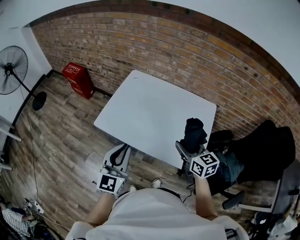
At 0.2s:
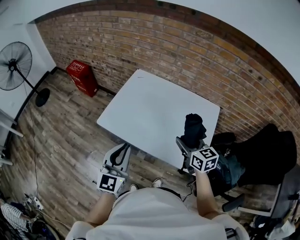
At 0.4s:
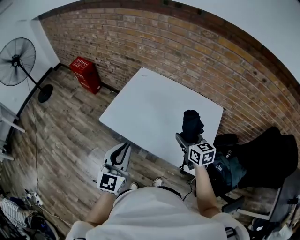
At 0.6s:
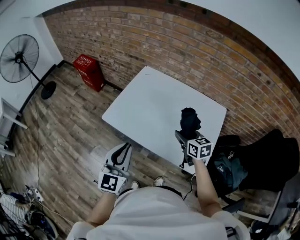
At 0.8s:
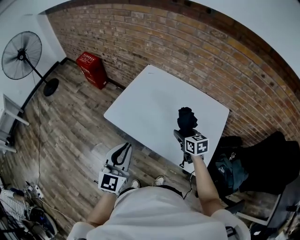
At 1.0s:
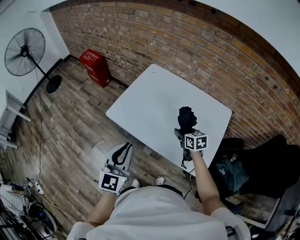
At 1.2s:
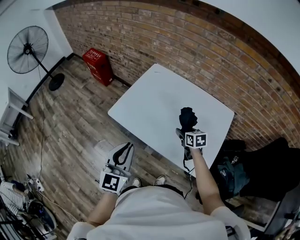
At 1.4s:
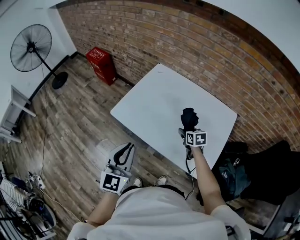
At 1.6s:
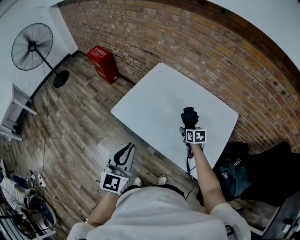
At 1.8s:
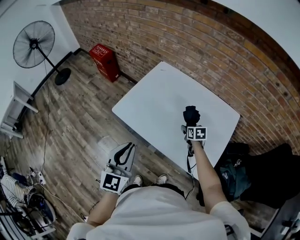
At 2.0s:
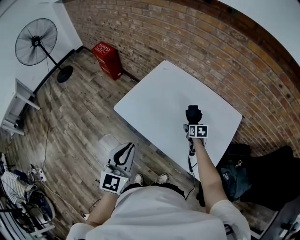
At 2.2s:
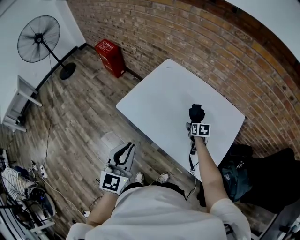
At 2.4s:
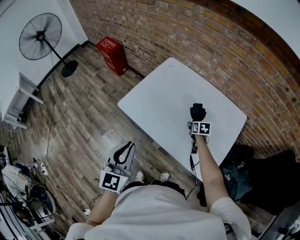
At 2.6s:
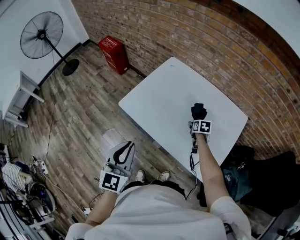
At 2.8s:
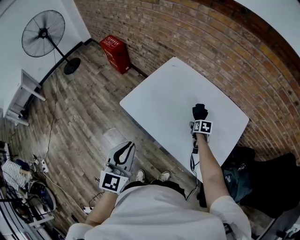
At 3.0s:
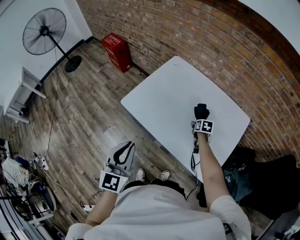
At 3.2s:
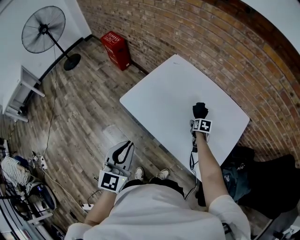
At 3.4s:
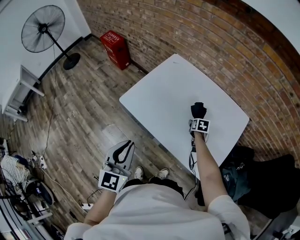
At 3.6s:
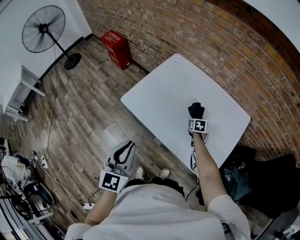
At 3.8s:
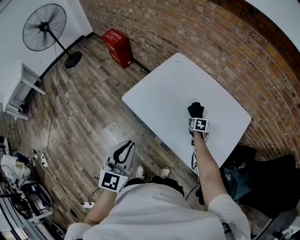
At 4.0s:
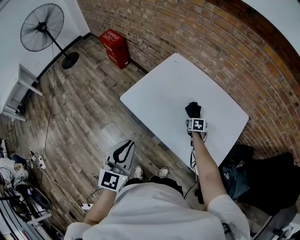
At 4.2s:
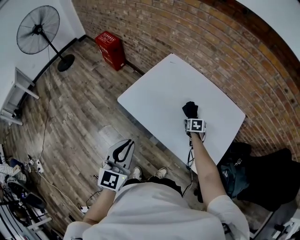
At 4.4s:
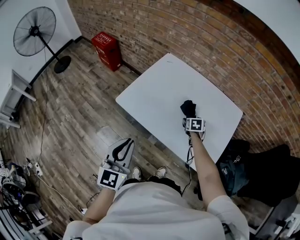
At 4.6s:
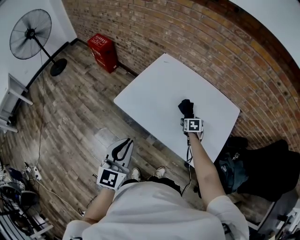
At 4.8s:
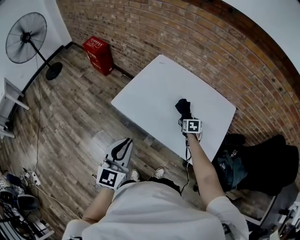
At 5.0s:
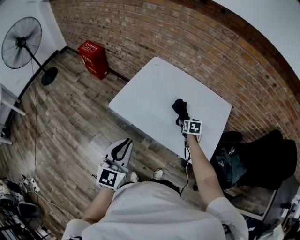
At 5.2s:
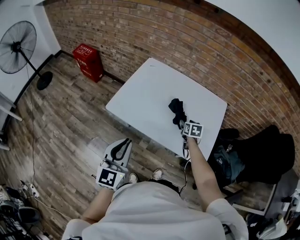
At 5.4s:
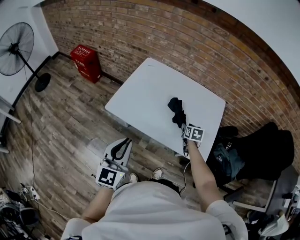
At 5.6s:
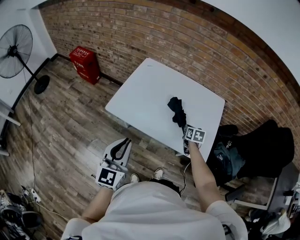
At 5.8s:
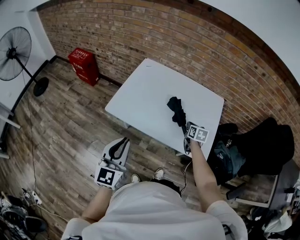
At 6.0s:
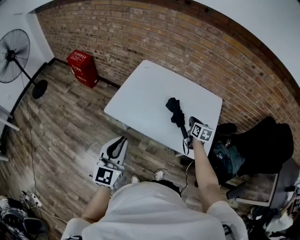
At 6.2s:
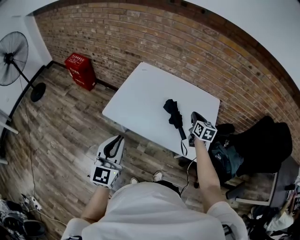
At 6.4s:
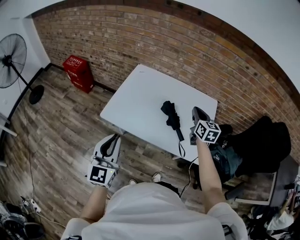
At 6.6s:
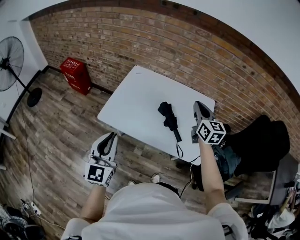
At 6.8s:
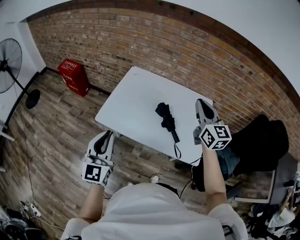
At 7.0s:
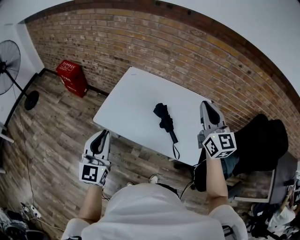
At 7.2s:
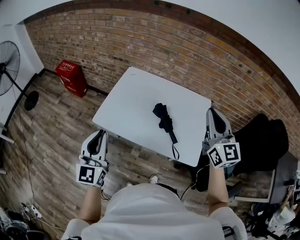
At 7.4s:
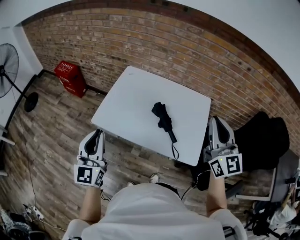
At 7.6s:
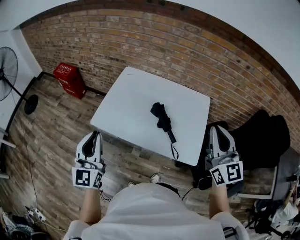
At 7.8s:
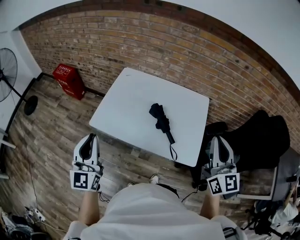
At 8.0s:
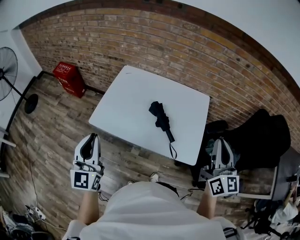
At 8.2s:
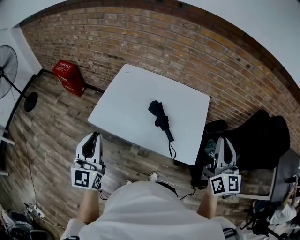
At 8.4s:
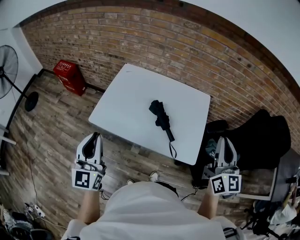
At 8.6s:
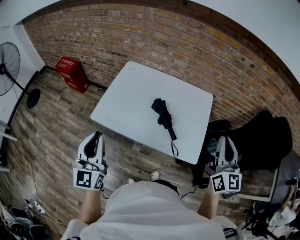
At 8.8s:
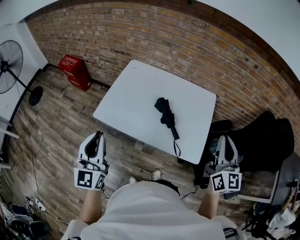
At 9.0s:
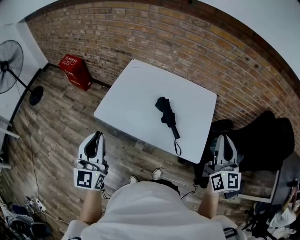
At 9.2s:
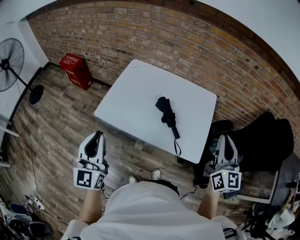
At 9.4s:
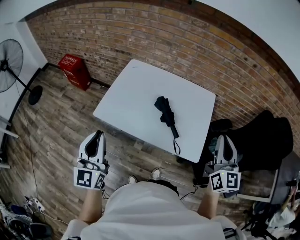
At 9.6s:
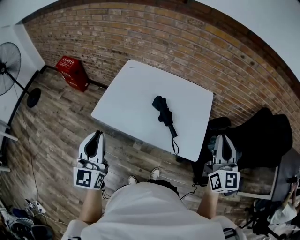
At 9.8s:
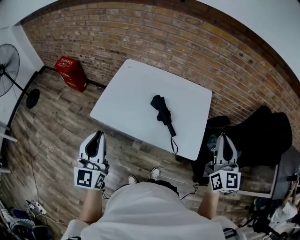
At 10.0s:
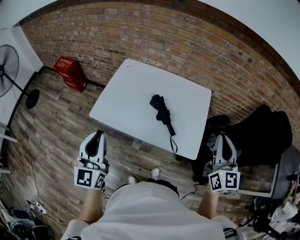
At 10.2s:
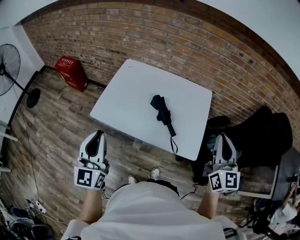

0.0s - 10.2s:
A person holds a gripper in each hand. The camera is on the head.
0.0s - 1.4s: The right gripper is displaced downward and forward by approximately 25 cm, and rotates roughly 20 degrees.
1.4s - 3.0s: The right gripper travels downward and forward by roughly 10 cm.
3.0s - 4.4s: The right gripper opens up.
4.4s - 5.8s: The right gripper goes about 15 cm backward, upward and to the right, rotates approximately 30 degrees, and closes up.
5.8s - 7.2s: The left gripper is displaced upward and forward by approximately 10 cm, while the right gripper is displaced upward by roughly 35 cm, and tips its fingers upward by about 50 degrees.
7.2s - 8.8s: The right gripper shifts about 10 cm to the right and backward.
8.8s - 10.2s: The grippers move only a little.

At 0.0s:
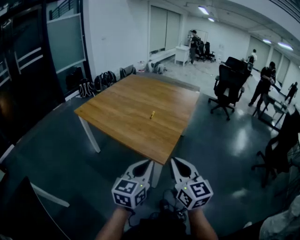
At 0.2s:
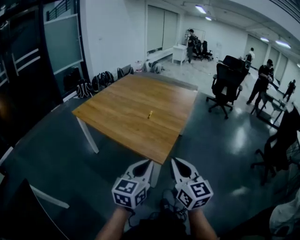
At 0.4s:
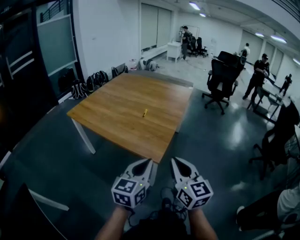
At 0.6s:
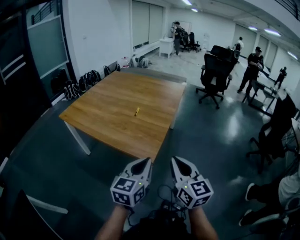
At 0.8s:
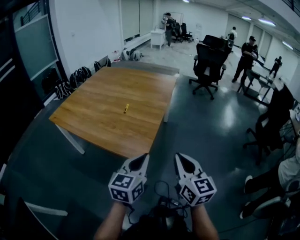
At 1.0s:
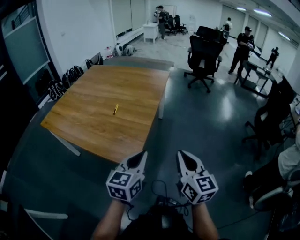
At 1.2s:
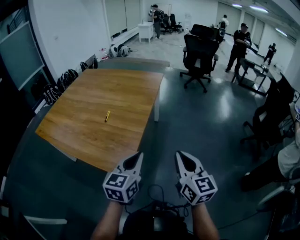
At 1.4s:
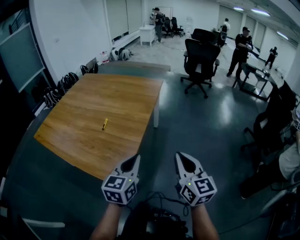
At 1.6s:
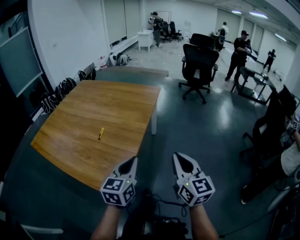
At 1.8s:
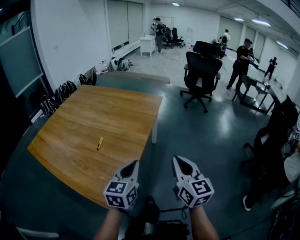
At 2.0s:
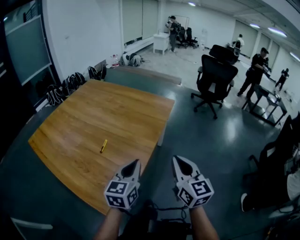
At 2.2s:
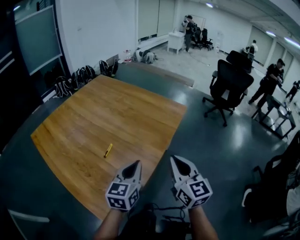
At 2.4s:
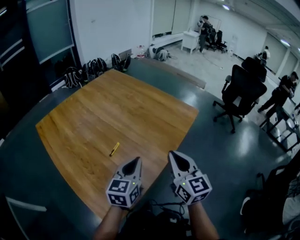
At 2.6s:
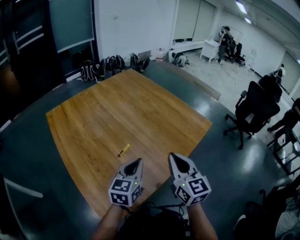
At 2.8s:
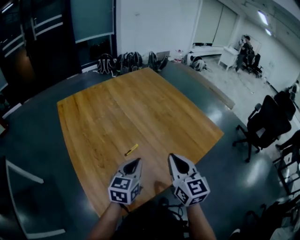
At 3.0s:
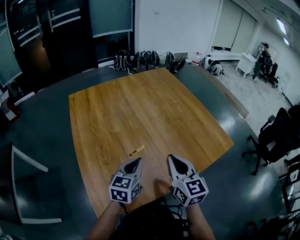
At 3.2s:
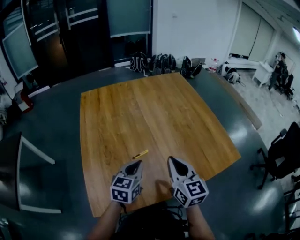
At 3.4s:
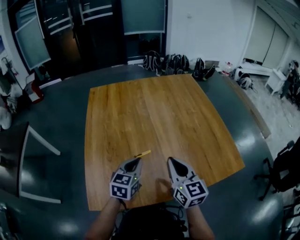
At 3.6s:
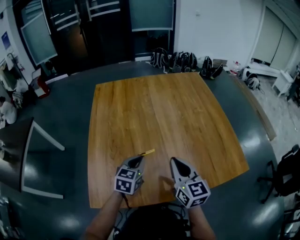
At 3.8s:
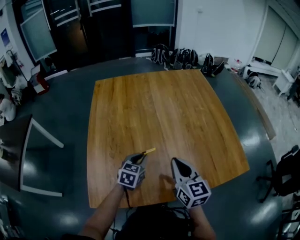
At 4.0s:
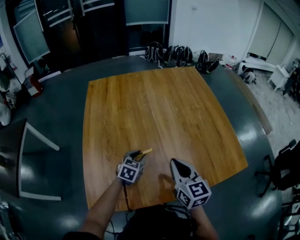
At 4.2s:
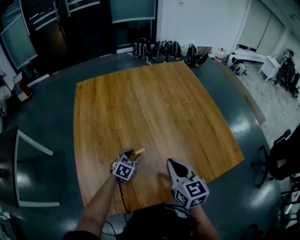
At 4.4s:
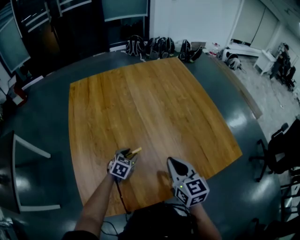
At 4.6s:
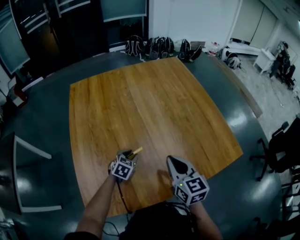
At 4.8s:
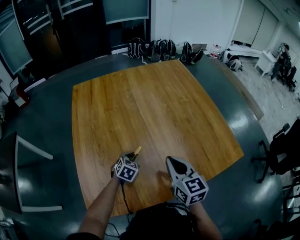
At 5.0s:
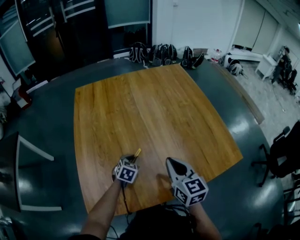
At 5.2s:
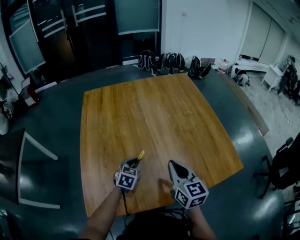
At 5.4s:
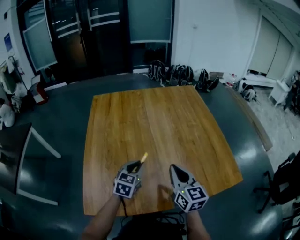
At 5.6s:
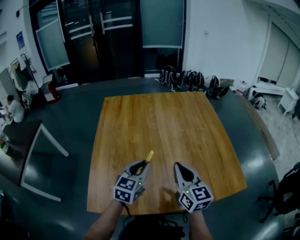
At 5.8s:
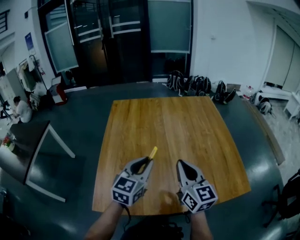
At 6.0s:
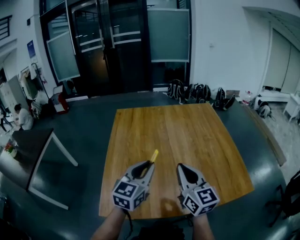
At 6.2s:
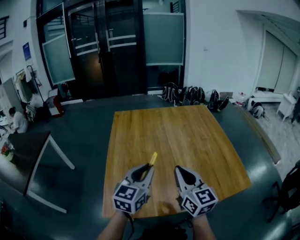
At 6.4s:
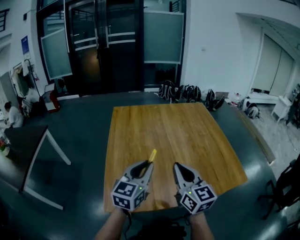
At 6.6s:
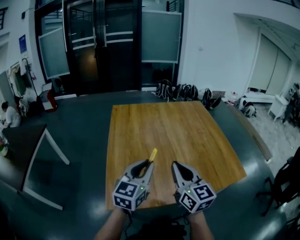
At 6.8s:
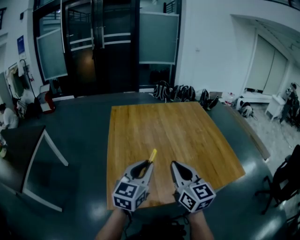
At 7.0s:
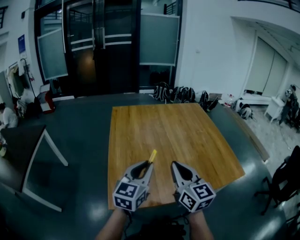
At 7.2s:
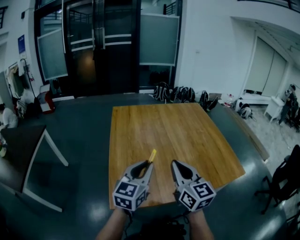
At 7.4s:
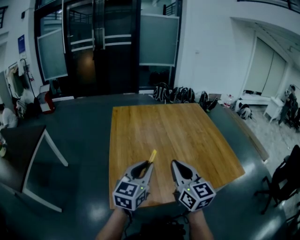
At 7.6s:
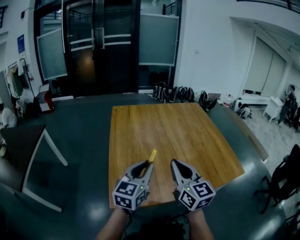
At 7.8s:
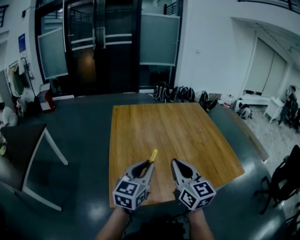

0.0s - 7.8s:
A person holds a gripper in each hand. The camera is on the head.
0.0s - 1.6s: The two grippers go approximately 35 cm forward and to the right.
1.6s - 3.2s: The left gripper shifts by approximately 30 cm, and swivels about 50 degrees, while the right gripper shifts by some 40 cm, and turns by some 60 degrees.
3.2s - 4.6s: The right gripper goes some 5 cm downward. Meanwhile the left gripper travels downward and forward by about 20 cm, changes its angle by about 30 degrees, and opens its fingers.
4.6s - 6.2s: The right gripper shifts about 15 cm upward, to the left and backward, and rotates about 20 degrees, while the left gripper heads upward and backward, covering approximately 35 cm, and points its fingers roughly 40 degrees further upward.
6.2s - 7.8s: The right gripper heads to the left and backward, covering about 10 cm. The left gripper goes some 10 cm backward and to the left.

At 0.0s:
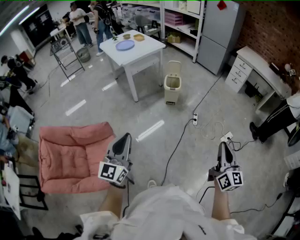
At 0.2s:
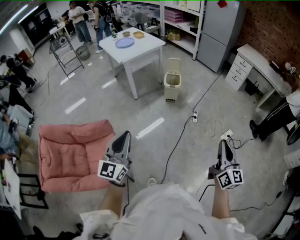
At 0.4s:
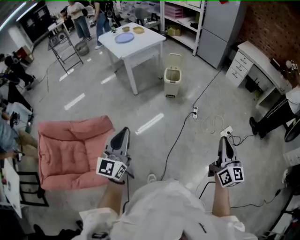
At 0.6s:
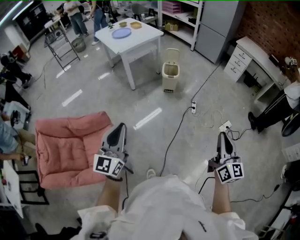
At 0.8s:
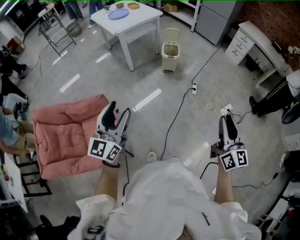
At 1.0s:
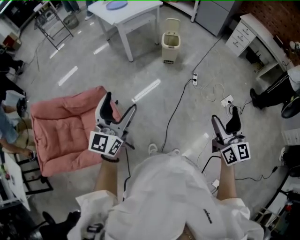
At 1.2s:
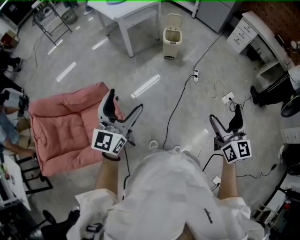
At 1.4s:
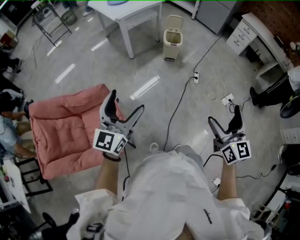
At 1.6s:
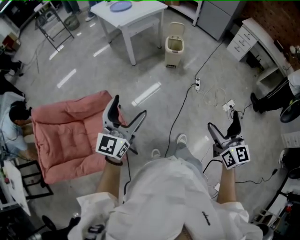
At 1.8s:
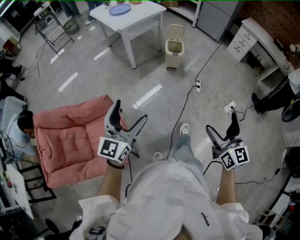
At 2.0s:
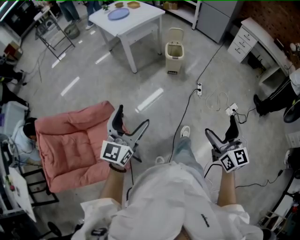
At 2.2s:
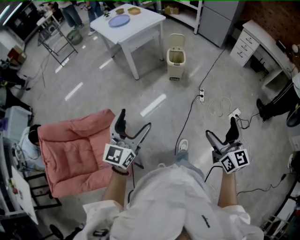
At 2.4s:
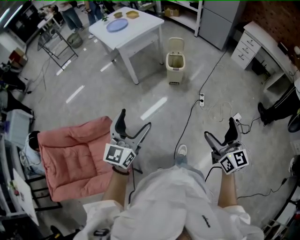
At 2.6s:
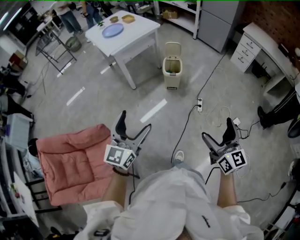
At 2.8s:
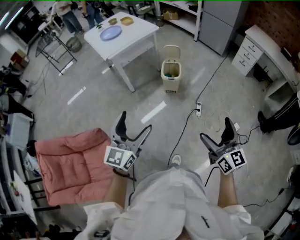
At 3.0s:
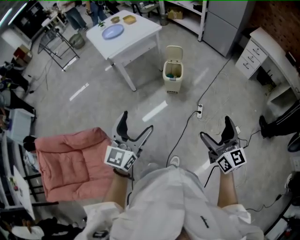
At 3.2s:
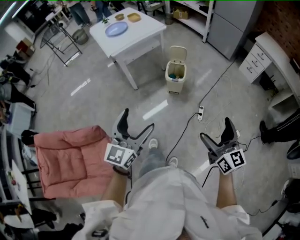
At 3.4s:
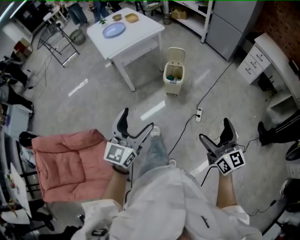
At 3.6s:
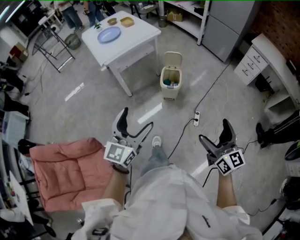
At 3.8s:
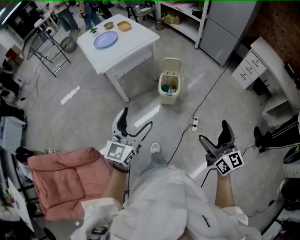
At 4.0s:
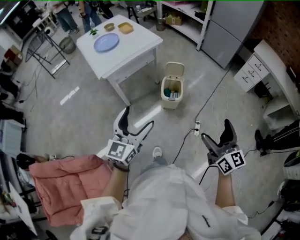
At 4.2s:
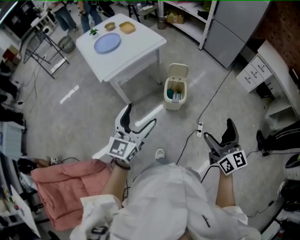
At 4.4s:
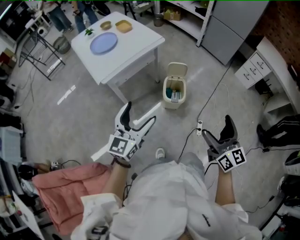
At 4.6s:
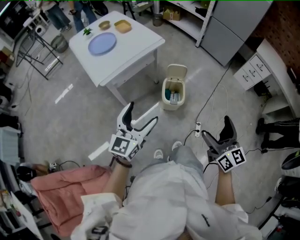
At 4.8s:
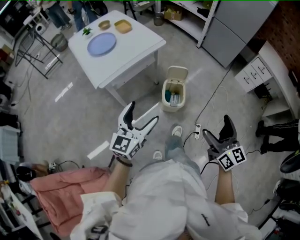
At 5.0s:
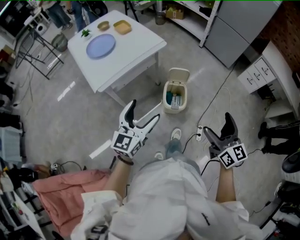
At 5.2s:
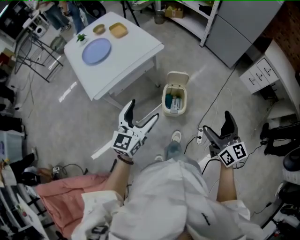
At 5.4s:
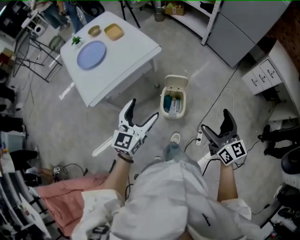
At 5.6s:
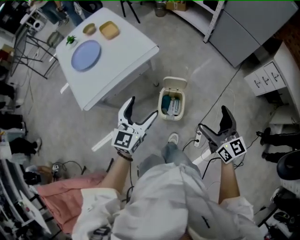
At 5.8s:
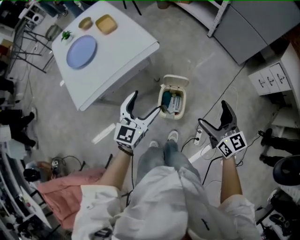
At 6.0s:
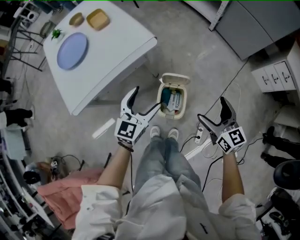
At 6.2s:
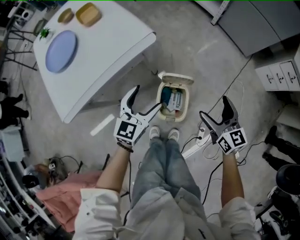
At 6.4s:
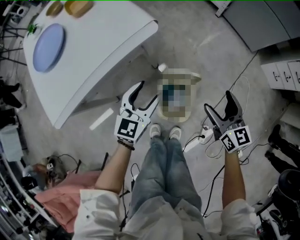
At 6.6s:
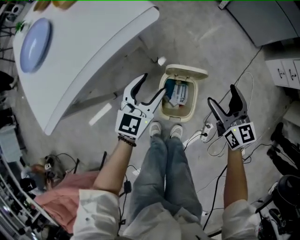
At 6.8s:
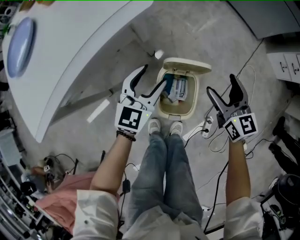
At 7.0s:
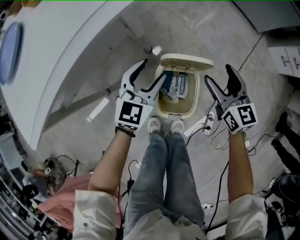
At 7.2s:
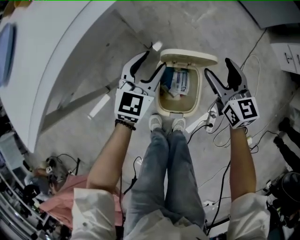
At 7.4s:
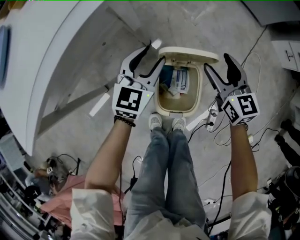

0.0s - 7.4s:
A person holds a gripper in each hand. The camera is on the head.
0.0s - 1.4s: The left gripper shifts roughly 5 cm to the left, and opens up. Meanwhile the right gripper moves to the left, about 10 cm, and opens.
1.4s - 3.0s: The two grippers go some 30 cm forward and to the right.
3.0s - 4.4s: Both grippers travel together forward, some 30 cm.
4.4s - 6.0s: The pair of grippers is taken forward, approximately 40 cm. Both grippers travel together downward, about 20 cm.
6.0s - 7.4s: Both grippers move downward and forward, some 35 cm. The right gripper closes; the left gripper closes.
